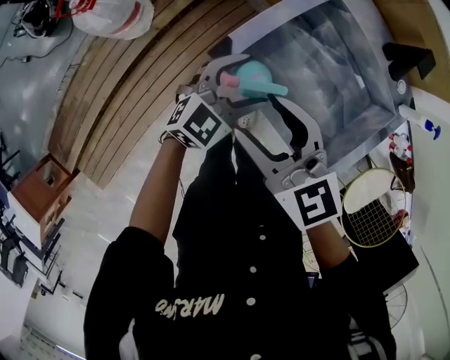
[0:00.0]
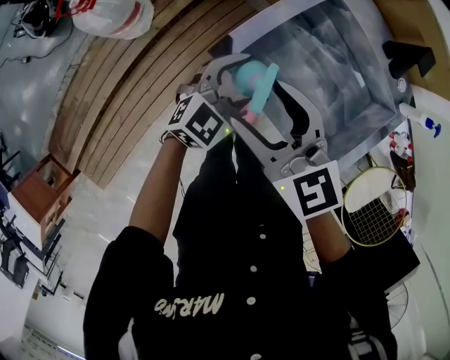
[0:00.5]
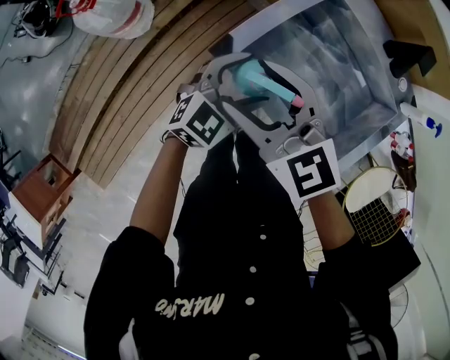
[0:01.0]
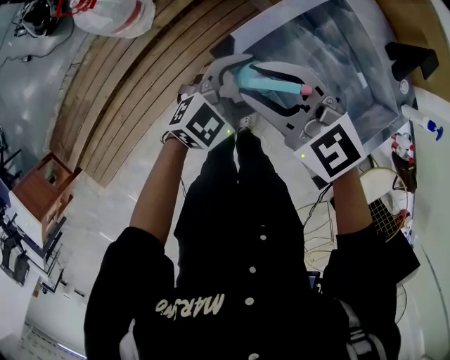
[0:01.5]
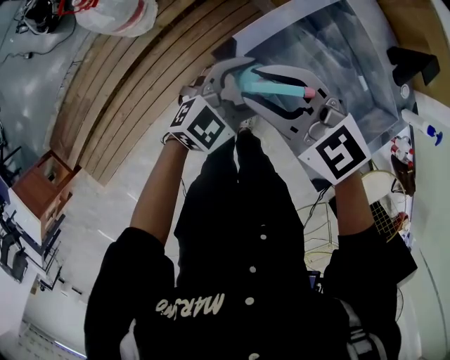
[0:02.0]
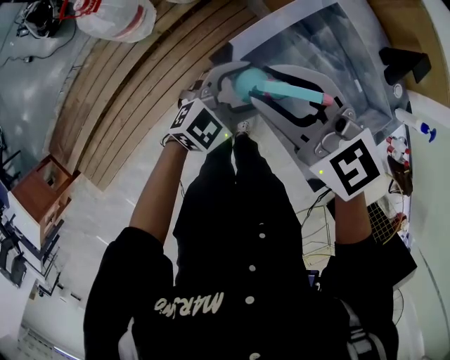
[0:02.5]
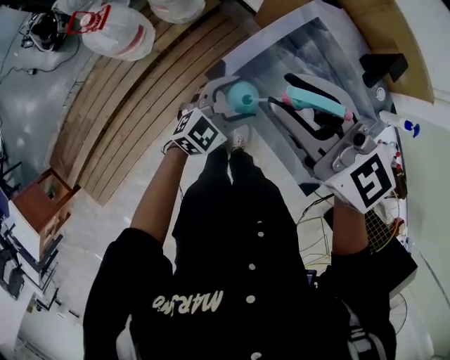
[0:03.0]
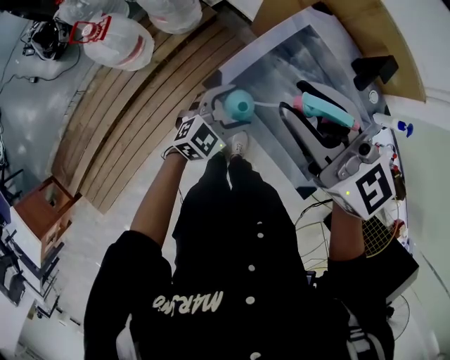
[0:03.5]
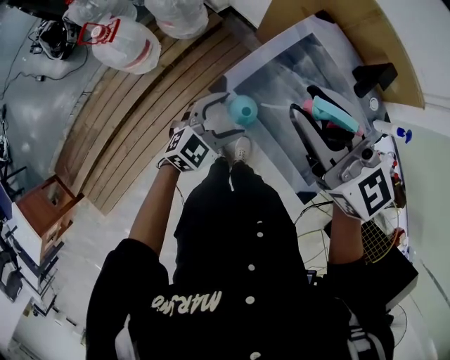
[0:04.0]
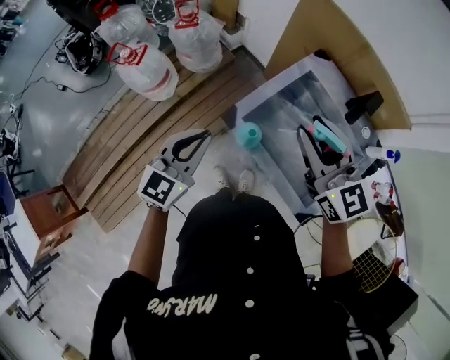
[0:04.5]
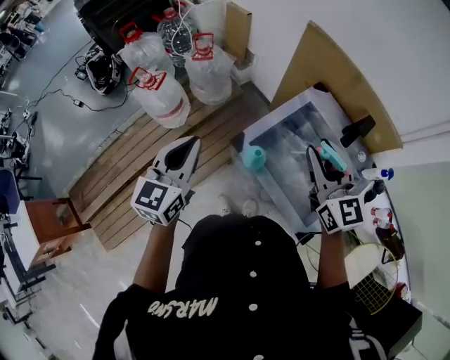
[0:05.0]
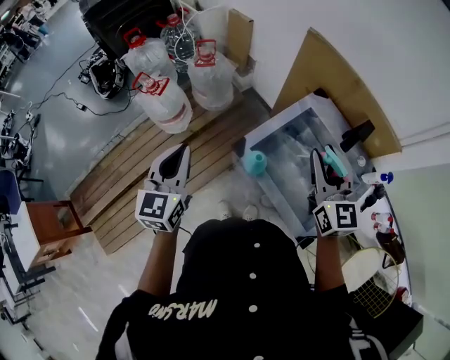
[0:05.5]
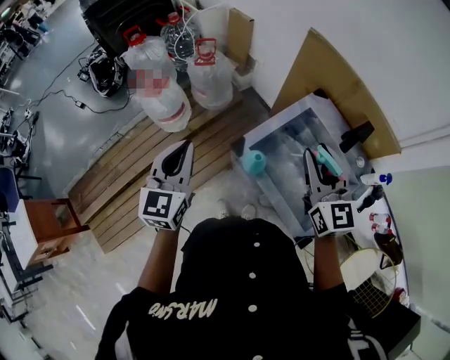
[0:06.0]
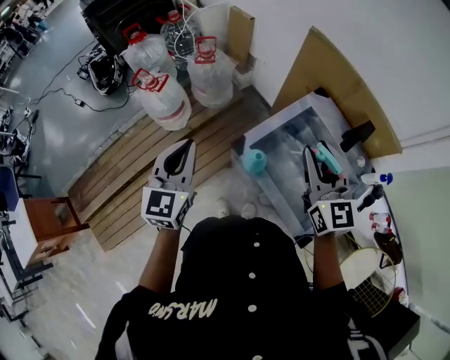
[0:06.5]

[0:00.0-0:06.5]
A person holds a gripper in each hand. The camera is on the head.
0:00.0 to 0:02.0: The right gripper changes its angle by about 30 degrees, and closes up.
0:02.0 to 0:04.5: The grippers both shift upward by roughly 15 cm. The right gripper changes its angle by some 30 degrees. The left gripper changes its angle by some 30 degrees, and closes up.
0:04.5 to 0:06.5: The left gripper shifts some 10 cm upward and to the left, and swivels approximately 30 degrees.

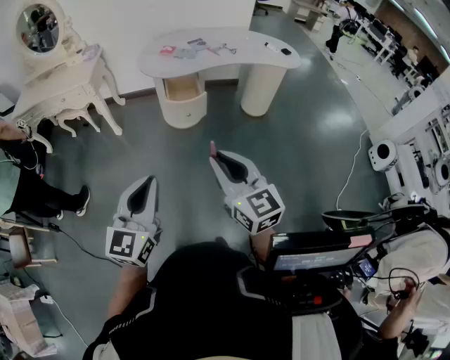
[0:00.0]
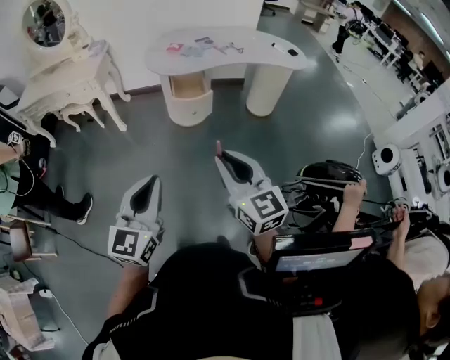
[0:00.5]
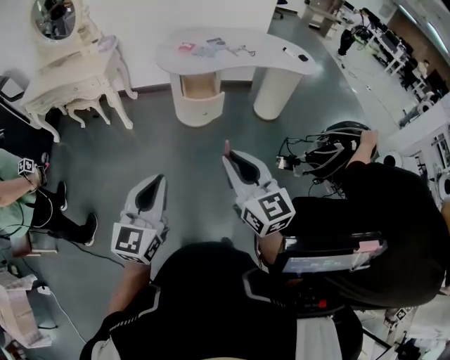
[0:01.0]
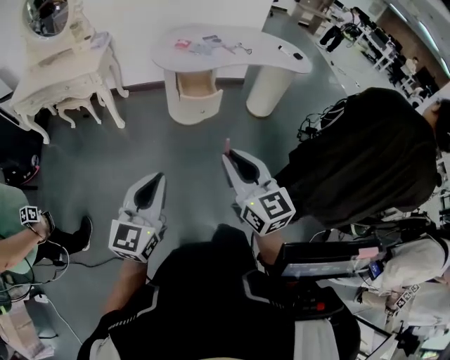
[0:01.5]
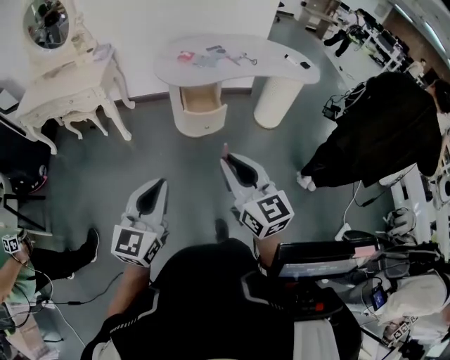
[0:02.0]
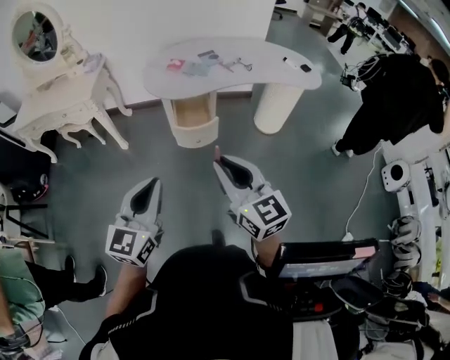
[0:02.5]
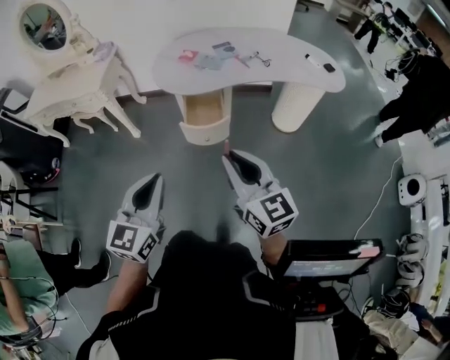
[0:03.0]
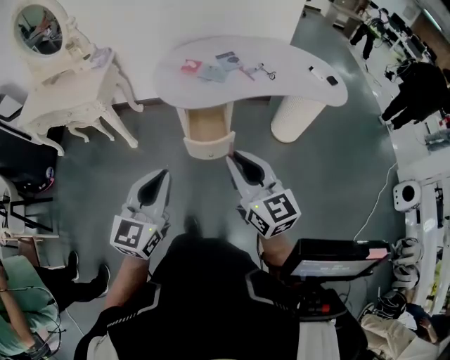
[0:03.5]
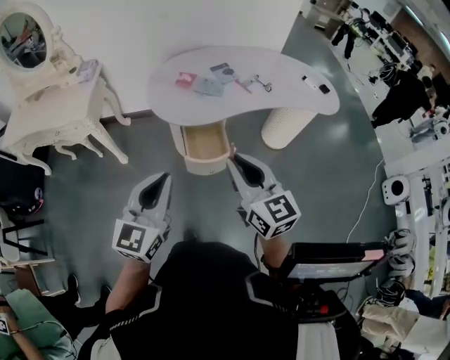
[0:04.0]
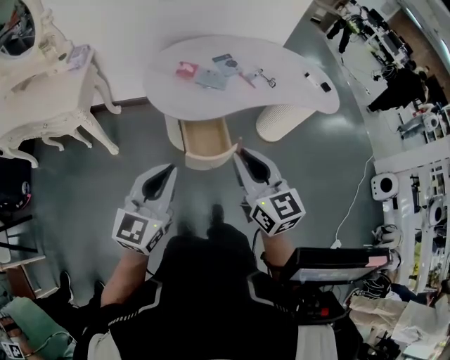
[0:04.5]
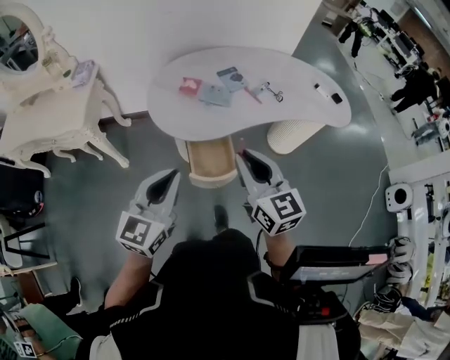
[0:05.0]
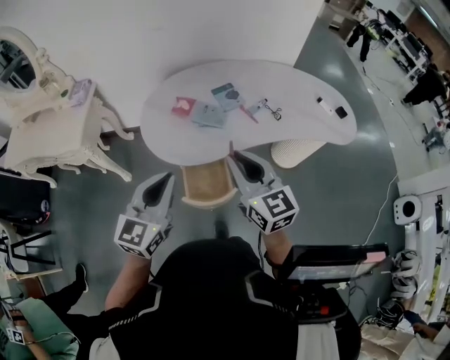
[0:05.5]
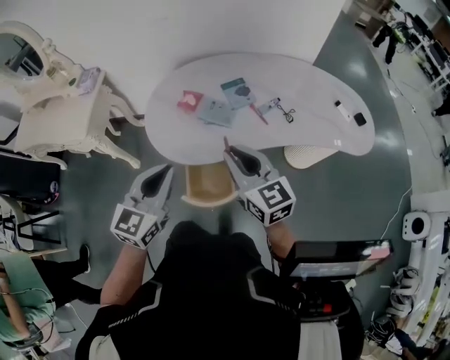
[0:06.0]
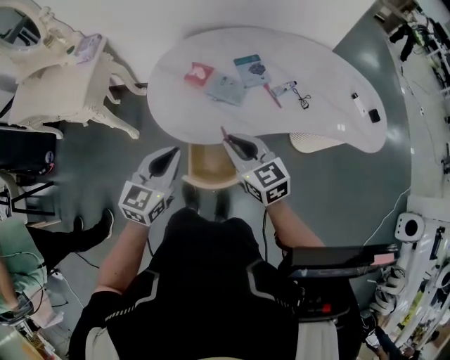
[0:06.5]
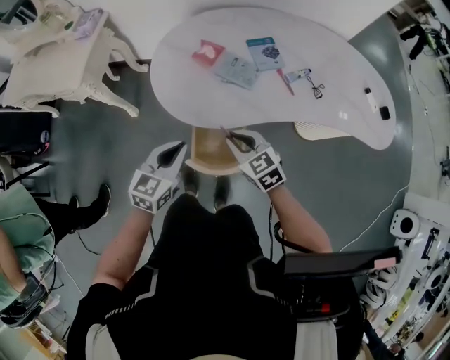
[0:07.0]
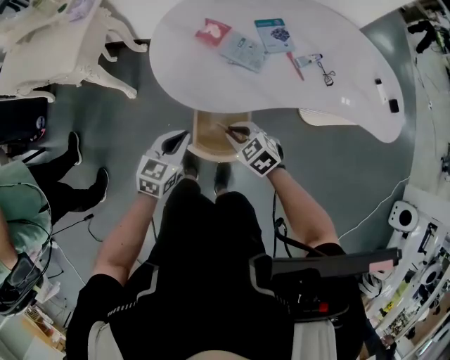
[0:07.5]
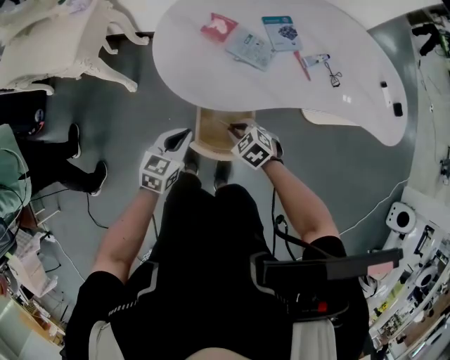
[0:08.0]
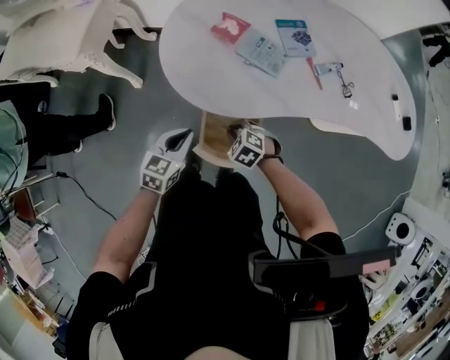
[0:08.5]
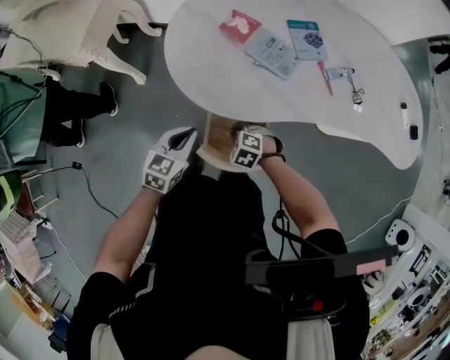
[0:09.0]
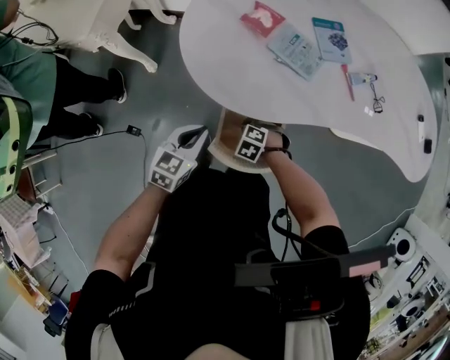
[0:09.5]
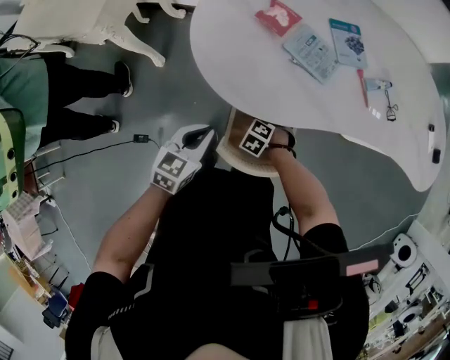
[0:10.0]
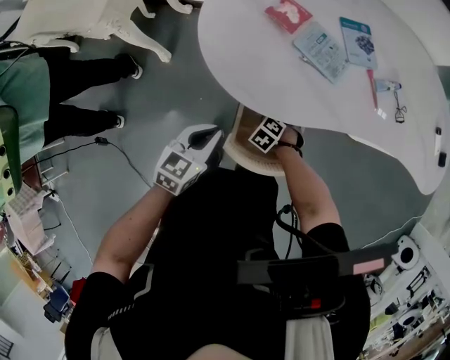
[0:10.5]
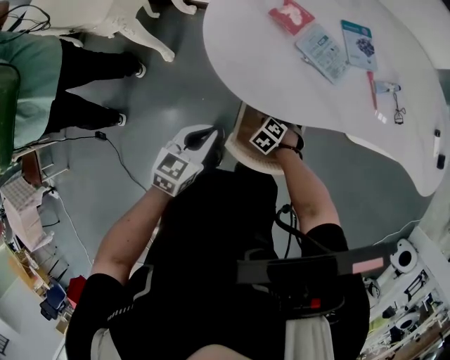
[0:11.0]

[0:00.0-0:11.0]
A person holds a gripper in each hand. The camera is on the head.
0:00.0 to 0:02.0: The two grippers go approximately 10 cm forward and to the left.
0:02.0 to 0:03.5: The grippers both shift forward by roughly 25 cm.
0:03.5 to 0:05.5: The grippers both shift forward by some 30 cm.
0:05.5 to 0:07.5: Both grippers travel together downward, some 30 cm. The left gripper changes its angle by some 30 degrees, while the right gripper points its fingers some 40 degrees further downward.
0:07.5 to 0:09.0: The right gripper travels downward by roughly 15 cm, and swivels roughly 30 degrees. Meanwhile the left gripper is displaced downward by about 5 cm.
0:09.0 to 0:11.0: The right gripper moves downward, approximately 10 cm.

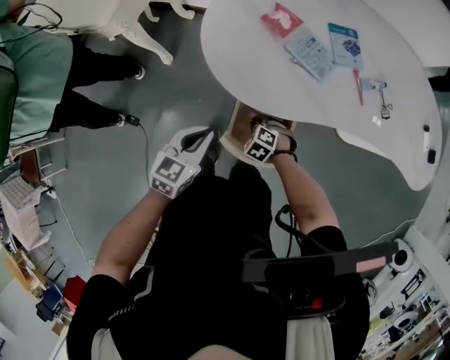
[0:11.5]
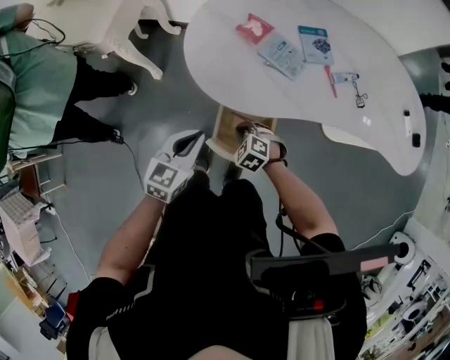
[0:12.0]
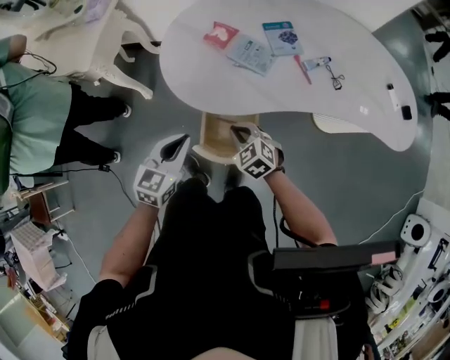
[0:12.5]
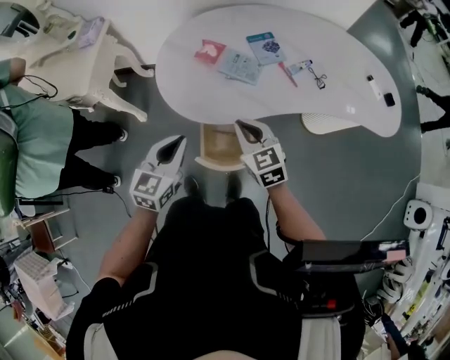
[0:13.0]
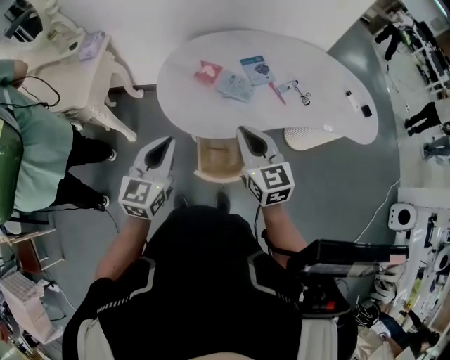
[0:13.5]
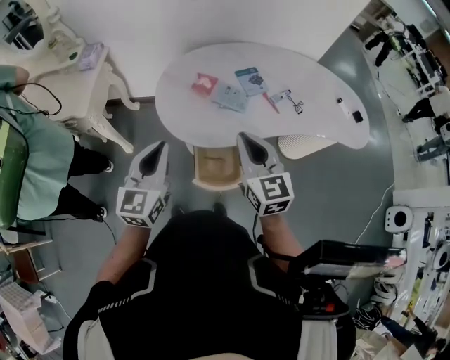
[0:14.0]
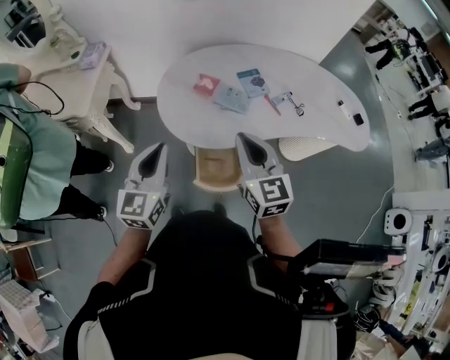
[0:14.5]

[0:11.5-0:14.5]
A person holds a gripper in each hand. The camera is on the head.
0:11.5 to 0:13.0: The left gripper heads upward, covering approximately 15 cm. The right gripper travels upward by about 30 cm, and points its fingers some 40 degrees further upward.
0:13.0 to 0:14.5: The left gripper is displaced upward and to the left by about 15 cm. The right gripper is displaced upward by about 15 cm, and changes its angle by approximately 20 degrees.

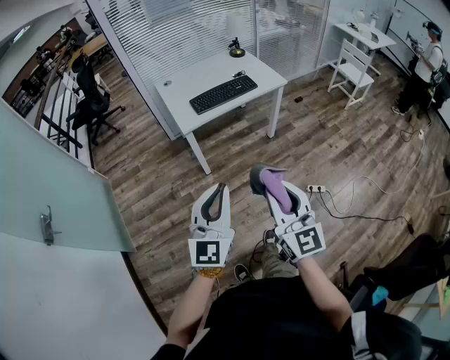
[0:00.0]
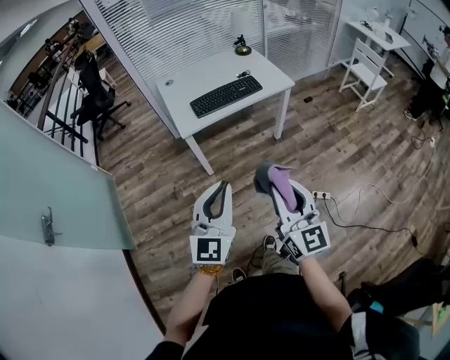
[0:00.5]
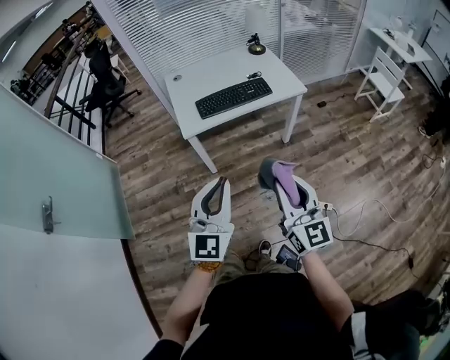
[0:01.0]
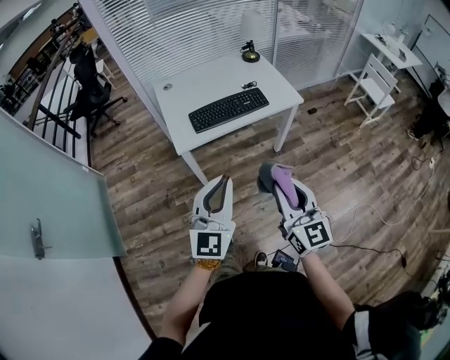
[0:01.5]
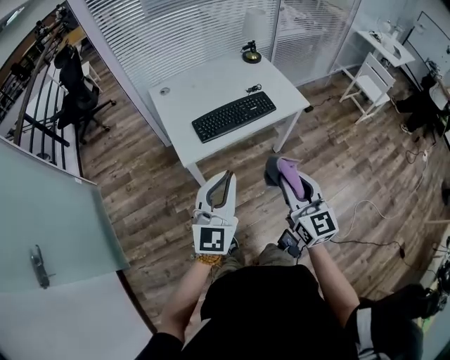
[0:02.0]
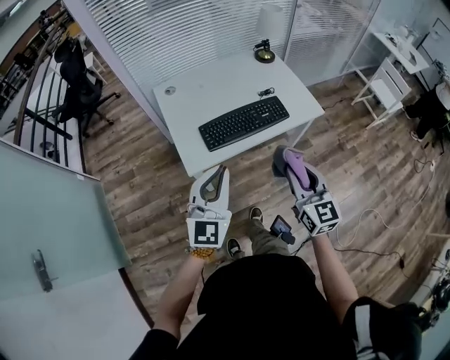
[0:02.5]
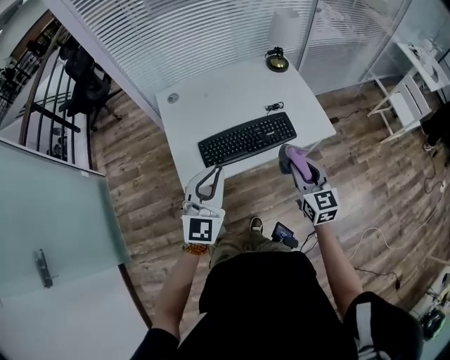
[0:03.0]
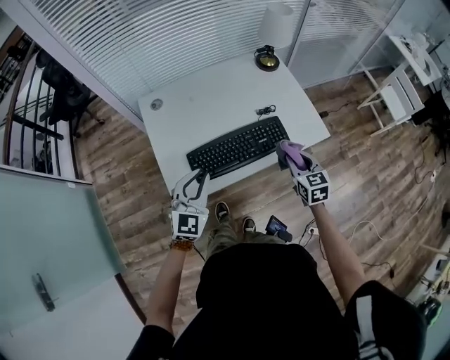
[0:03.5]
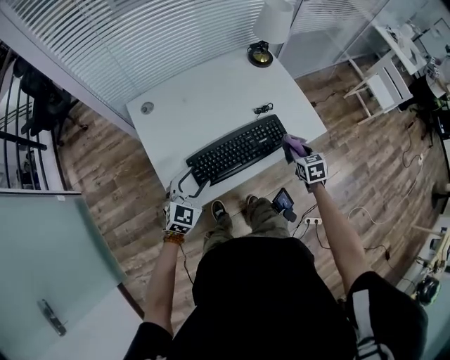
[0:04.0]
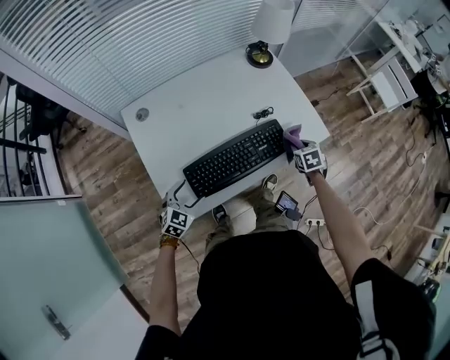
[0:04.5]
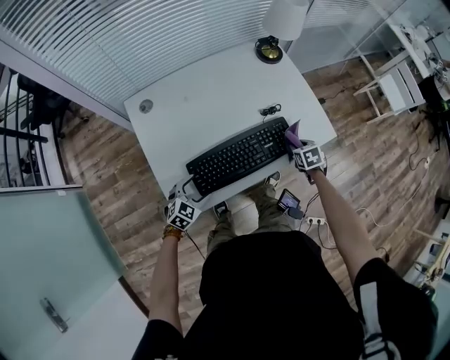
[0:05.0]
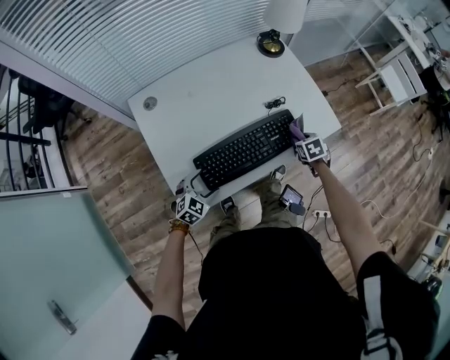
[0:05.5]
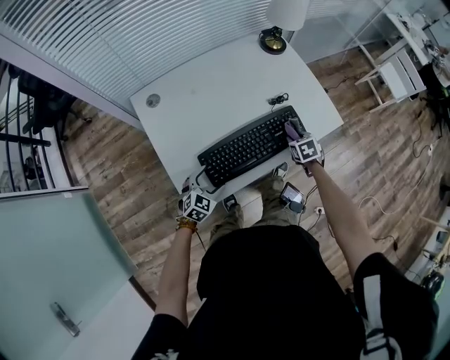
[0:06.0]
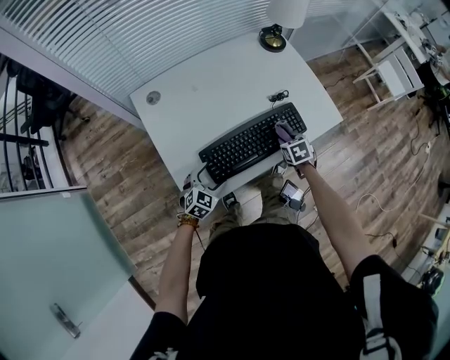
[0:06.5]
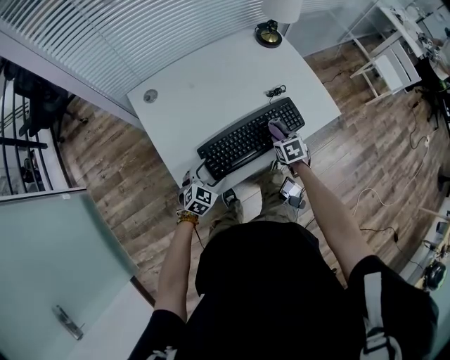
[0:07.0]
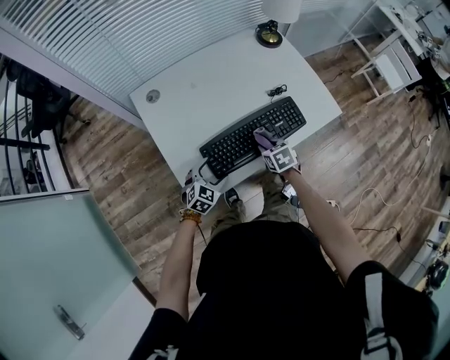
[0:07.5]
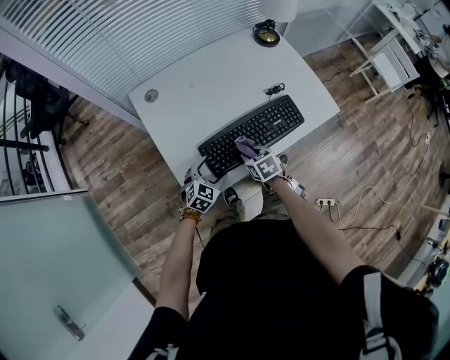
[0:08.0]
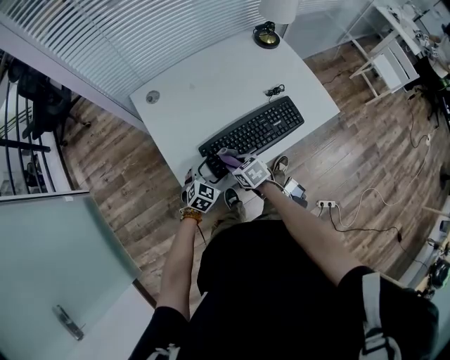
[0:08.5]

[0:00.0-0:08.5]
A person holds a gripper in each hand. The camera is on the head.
0:00.0 to 0:02.0: Both grippers move forward, approximately 35 cm.
0:02.0 to 0:04.0: Both grippers move forward and downward, approximately 50 cm. The right gripper tilts its fingers about 50 degrees downward. Meanwhile the left gripper swivels roughly 30 degrees, and opens its fingers.
0:04.0 to 0:06.5: The right gripper is displaced downward and to the left by about 15 cm; the left gripper is displaced downward by about 15 cm.
0:06.5 to 0:08.5: The right gripper heads to the left and backward, covering approximately 25 cm, and changes its angle by about 20 degrees.
